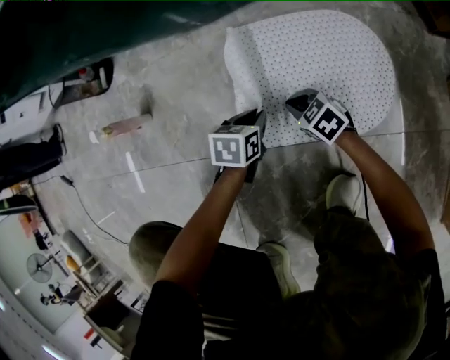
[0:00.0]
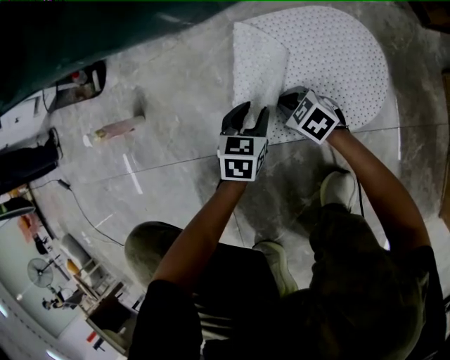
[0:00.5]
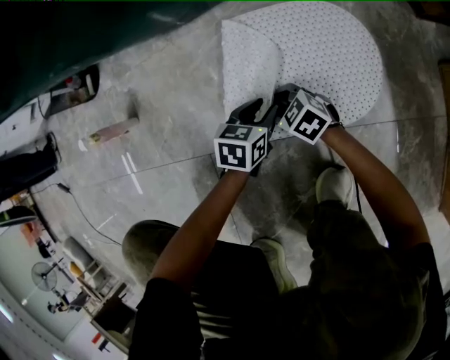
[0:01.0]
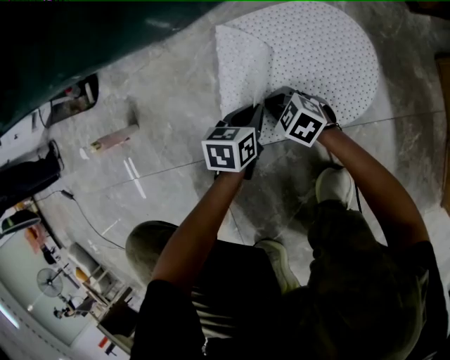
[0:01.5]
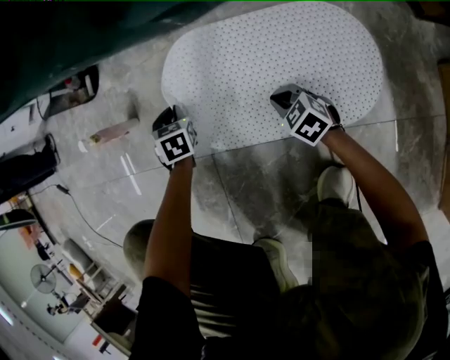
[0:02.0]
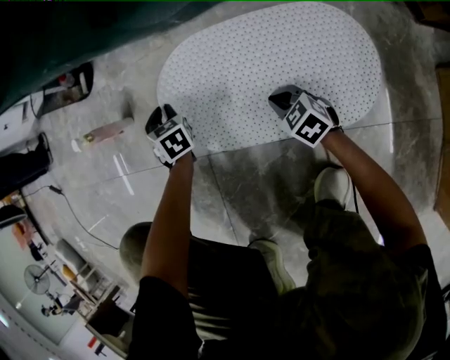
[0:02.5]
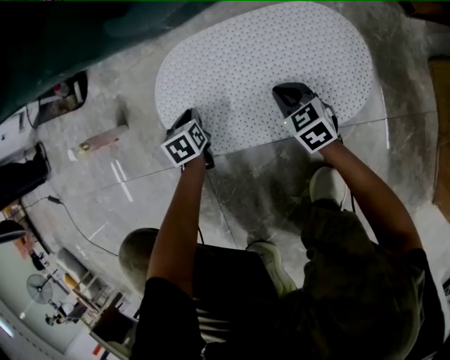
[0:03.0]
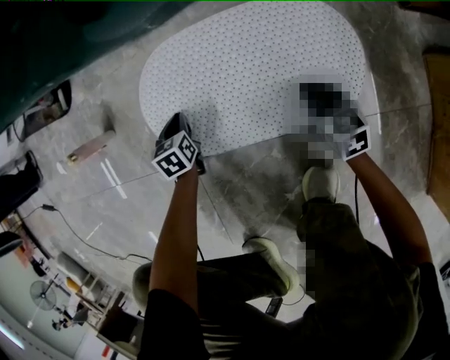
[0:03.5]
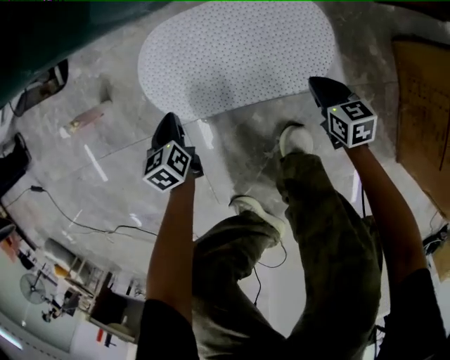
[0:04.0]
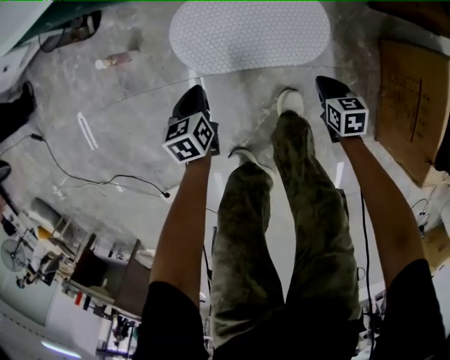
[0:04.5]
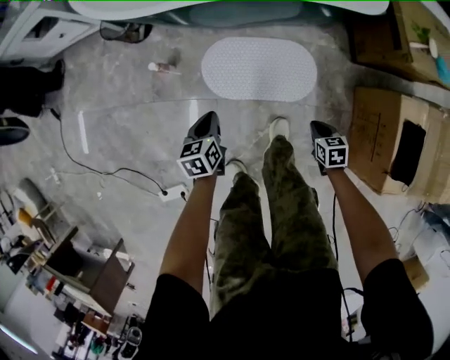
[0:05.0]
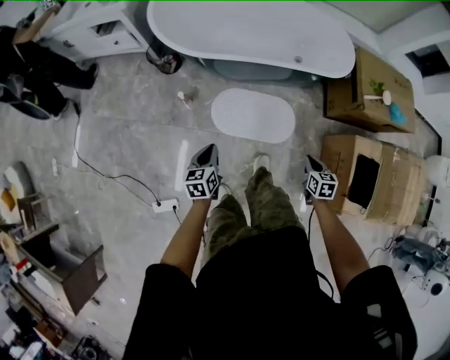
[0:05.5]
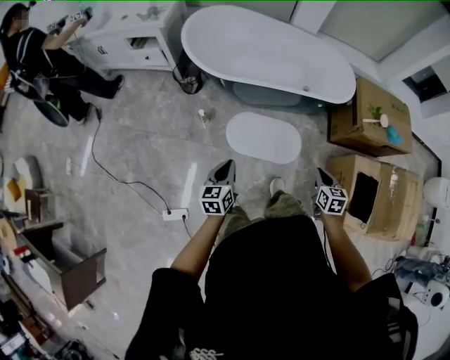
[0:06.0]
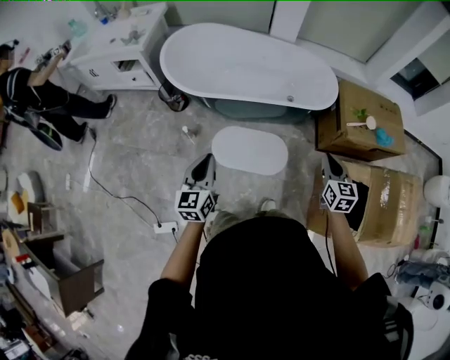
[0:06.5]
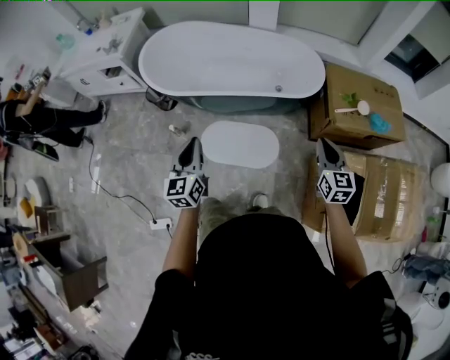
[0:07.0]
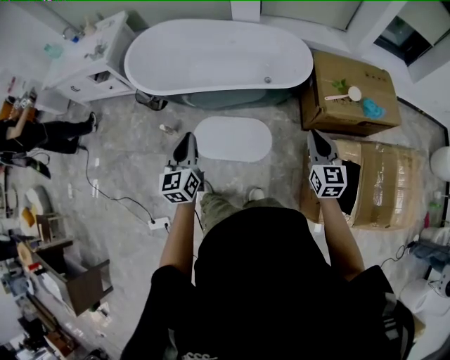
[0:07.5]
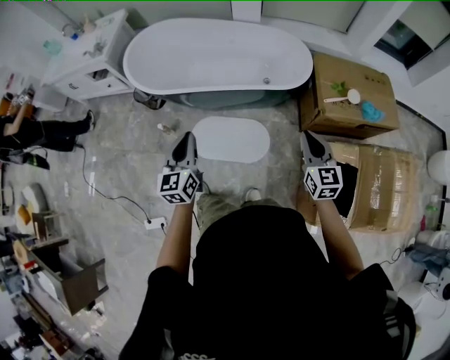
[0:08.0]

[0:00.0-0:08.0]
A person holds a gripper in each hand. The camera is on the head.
0:00.0 to 0:02.0: The left gripper changes place by some 20 cm, changes its angle by some 40 degrees, and opens, then closes again.
0:02.0 to 0:04.0: The left gripper ends up about 15 cm from where it was, and swivels roughly 30 degrees, while the right gripper changes place by some 25 cm, and changes its angle by approximately 40 degrees.
0:04.0 to 0:06.0: Both grippers move upward, about 80 cm. The left gripper rotates roughly 30 degrees.
0:06.0 to 0:08.0: Both grippers move to the right, upward and forward, approximately 30 cm. The left gripper swivels some 20 degrees. The right gripper rotates roughly 30 degrees.

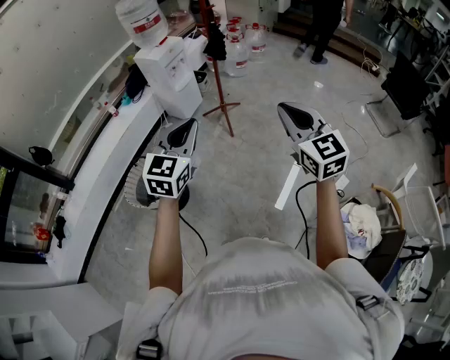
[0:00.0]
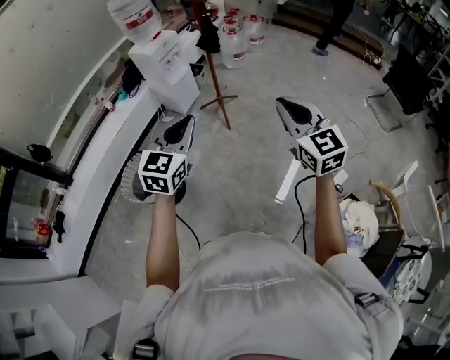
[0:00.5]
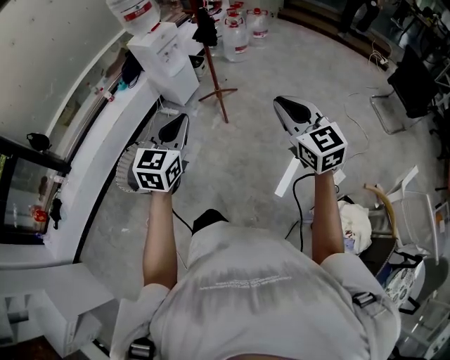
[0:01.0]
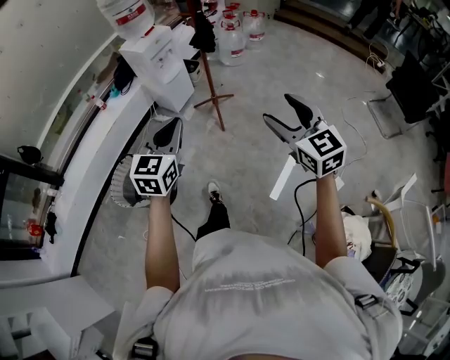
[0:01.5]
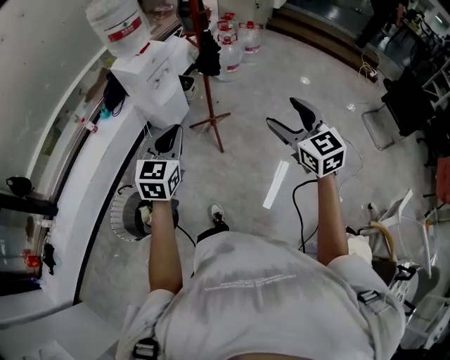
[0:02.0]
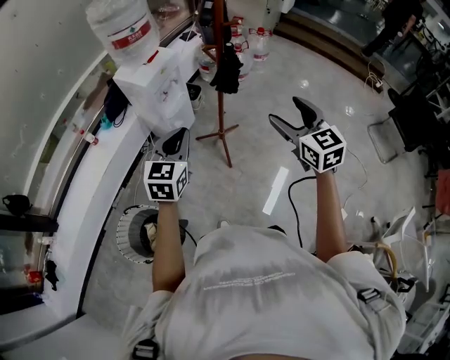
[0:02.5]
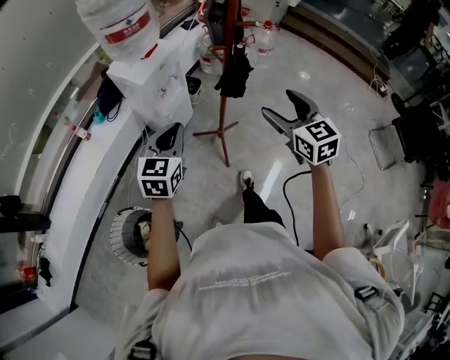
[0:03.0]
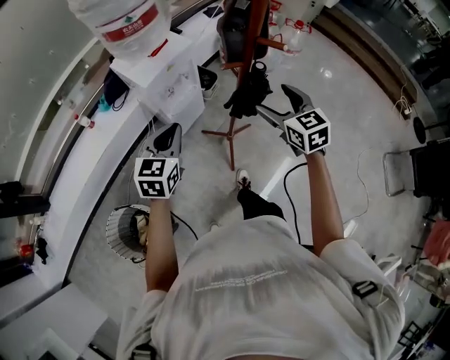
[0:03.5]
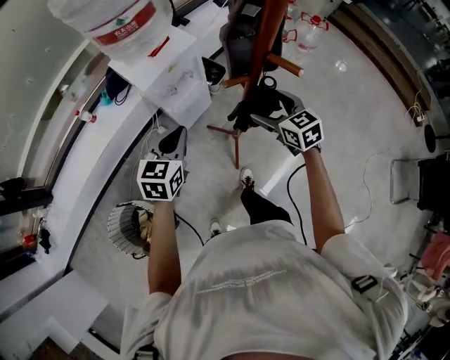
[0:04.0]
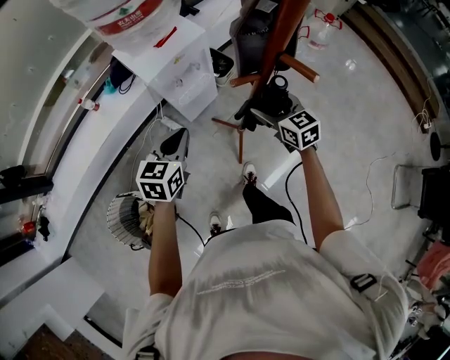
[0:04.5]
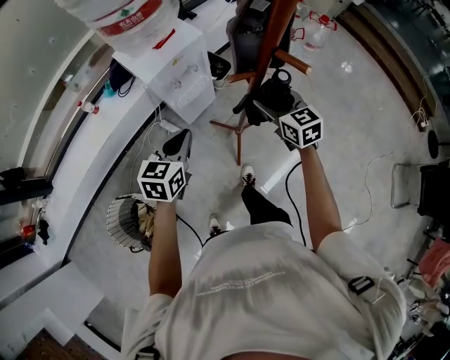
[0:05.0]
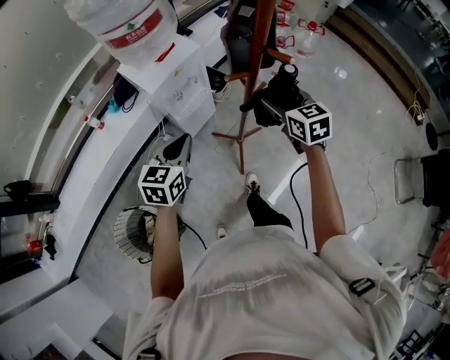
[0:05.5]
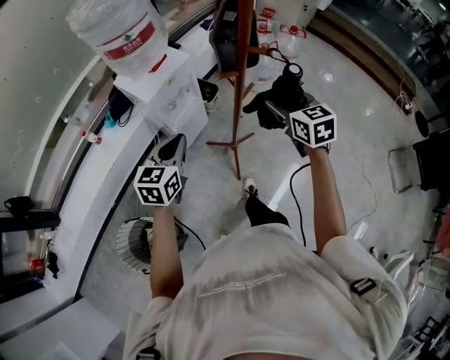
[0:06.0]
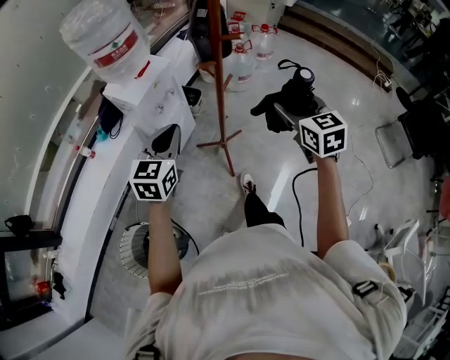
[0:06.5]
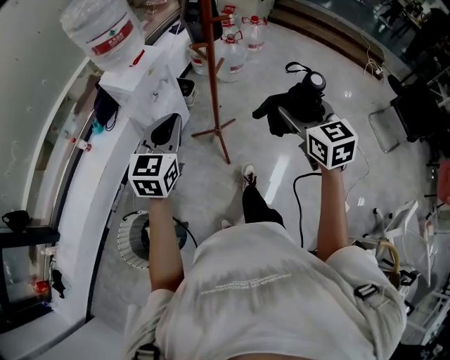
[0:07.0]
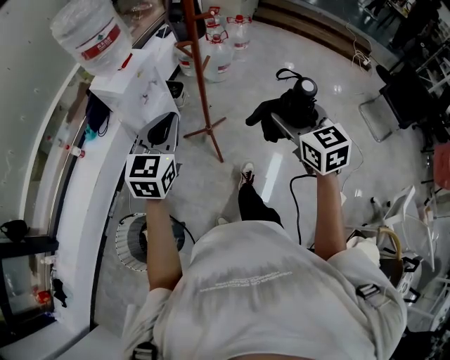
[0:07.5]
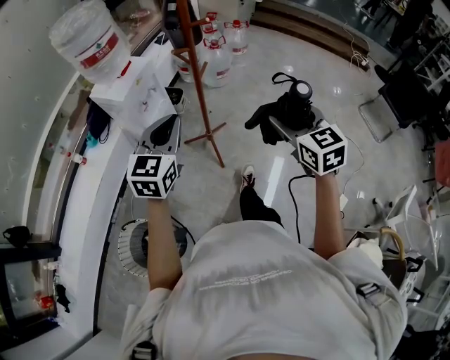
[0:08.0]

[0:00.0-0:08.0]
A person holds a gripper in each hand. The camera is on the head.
0:00.0 to 0:02.0: The two grippers go some 25 cm forward. The right gripper opens its fingers.
0:02.0 to 0:04.0: The two grippers travel together, forward, about 50 cm. The left gripper rotates some 20 degrees, while the right gripper moves downward, approximately 20 cm, and turns by about 30 degrees.
0:04.0 to 0:06.0: The left gripper is displaced backward and upward by about 10 cm. The right gripper moves upward and backward, approximately 15 cm.
0:06.0 to 0:08.0: The left gripper travels backward, upward and to the right by some 20 cm, and swivels approximately 20 degrees. The right gripper goes roughly 30 cm backward.

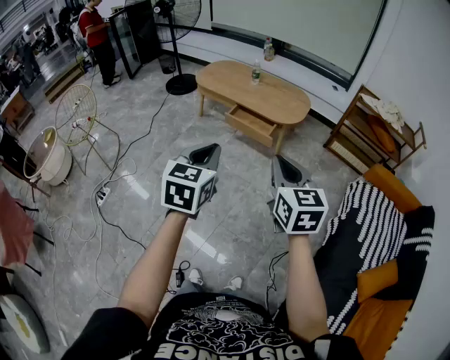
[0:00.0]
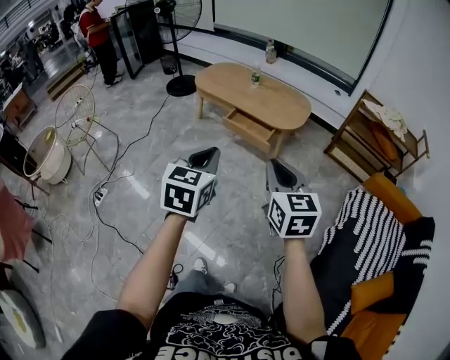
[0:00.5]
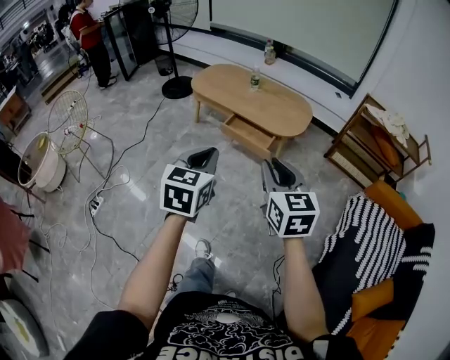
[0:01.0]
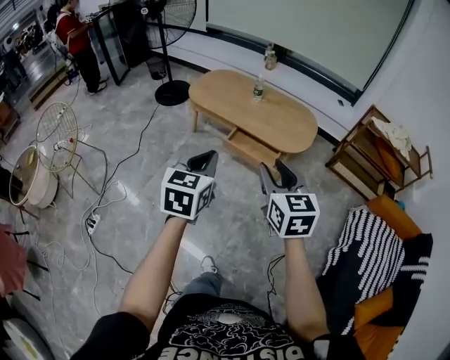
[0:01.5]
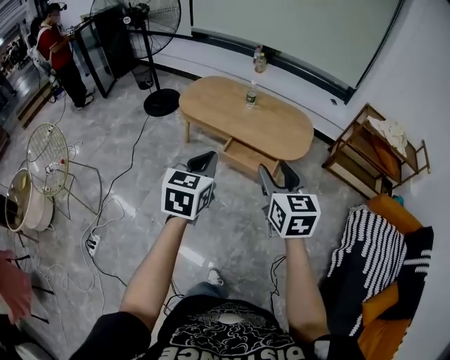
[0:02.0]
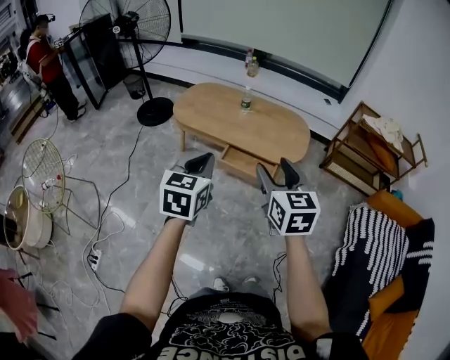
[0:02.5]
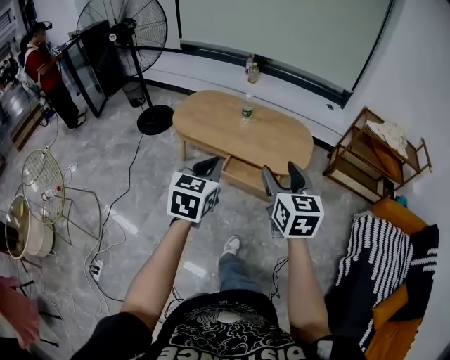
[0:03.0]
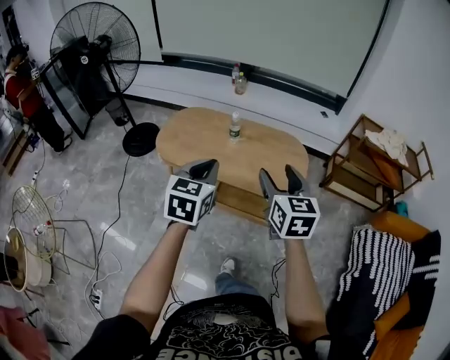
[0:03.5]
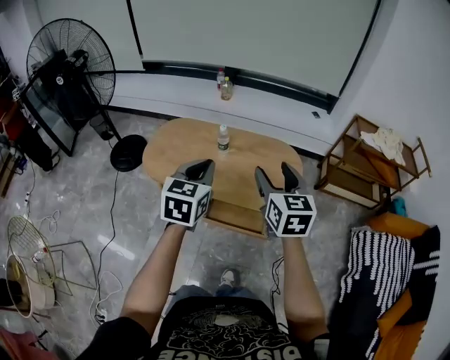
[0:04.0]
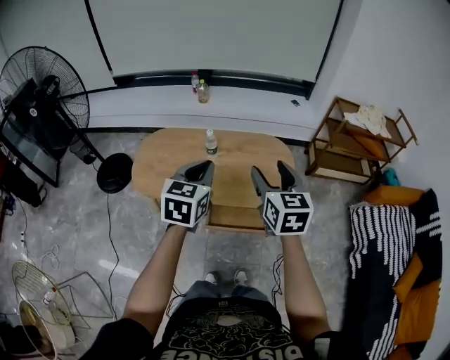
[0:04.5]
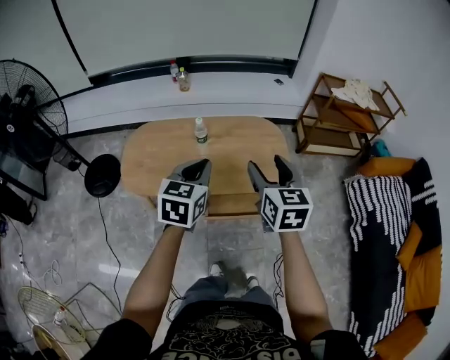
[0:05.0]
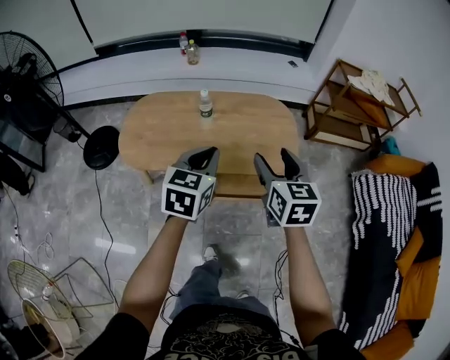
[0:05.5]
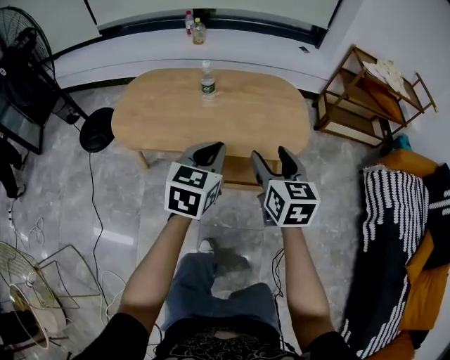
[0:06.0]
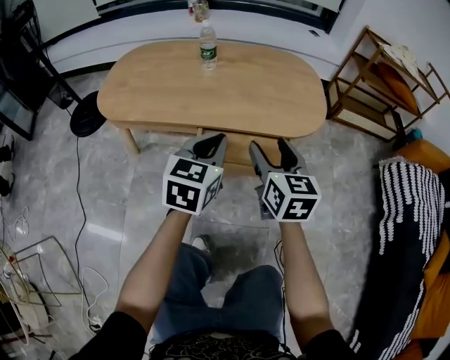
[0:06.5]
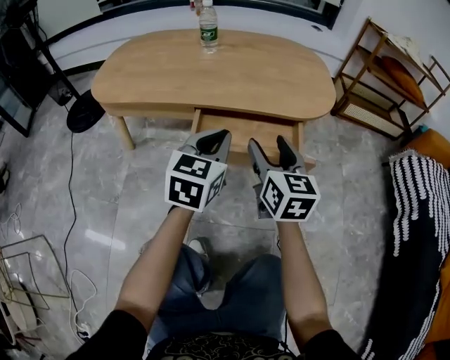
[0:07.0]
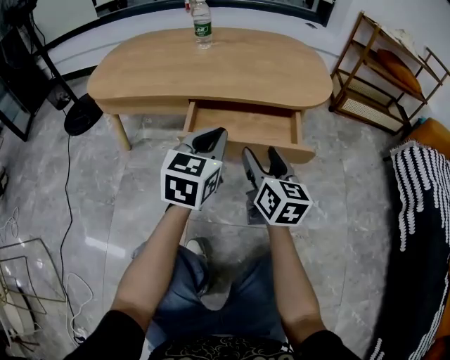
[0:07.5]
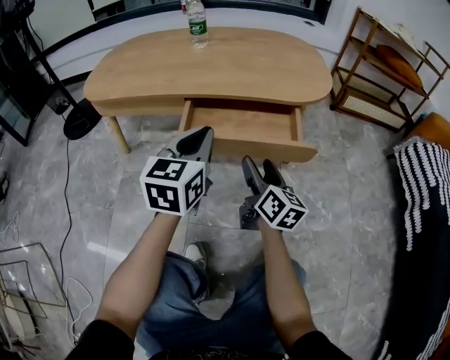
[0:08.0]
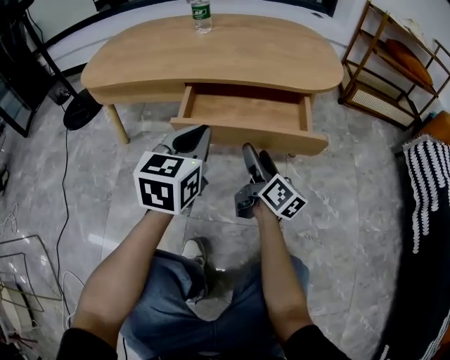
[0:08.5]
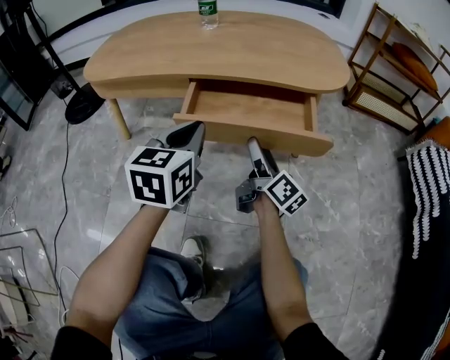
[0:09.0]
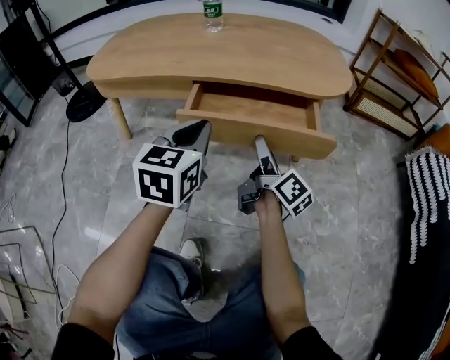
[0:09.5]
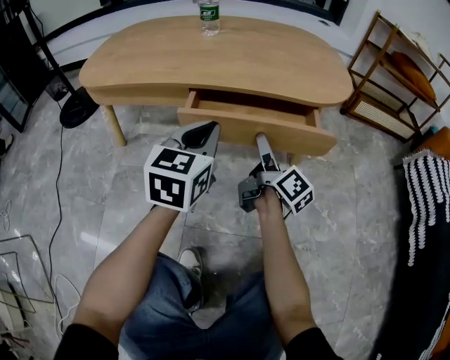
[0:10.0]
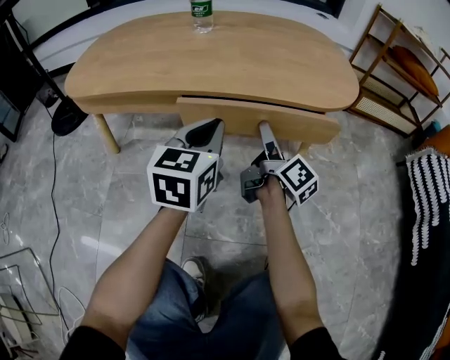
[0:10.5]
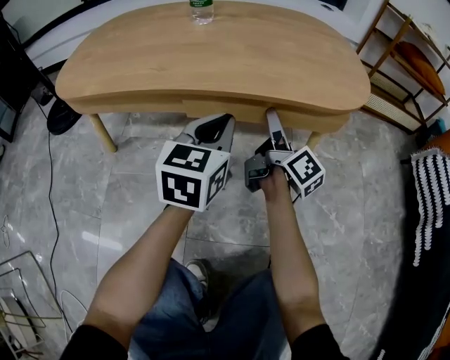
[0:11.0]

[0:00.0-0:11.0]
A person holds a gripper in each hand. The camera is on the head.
0:00.0 to 0:02.0: The two grippers go roughly 30 cm forward. The right gripper opens its fingers.
0:02.0 to 0:03.5: Both grippers travel together forward, about 25 cm.
0:03.5 to 0:05.5: The left gripper travels forward and downward by about 15 cm, and changes its angle by some 20 degrees, while the right gripper goes roughly 10 cm downward and forward.
0:05.5 to 0:07.5: The grippers both shift downward by roughly 40 cm.
0:07.5 to 0:09.0: The left gripper shifts about 5 cm downward and to the left; the right gripper is displaced downward by some 10 cm, and swivels roughly 40 degrees.
0:09.0 to 0:11.0: The two grippers go roughly 15 cm forward.
